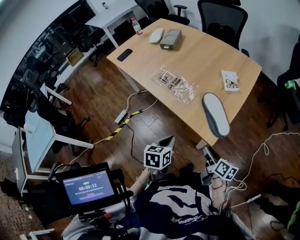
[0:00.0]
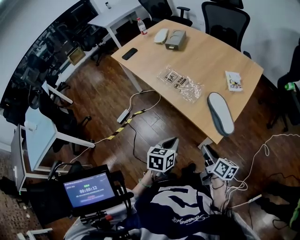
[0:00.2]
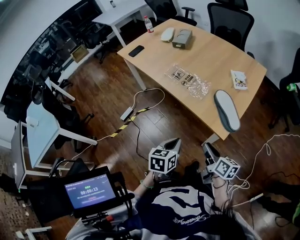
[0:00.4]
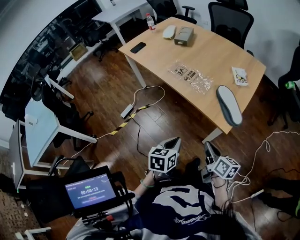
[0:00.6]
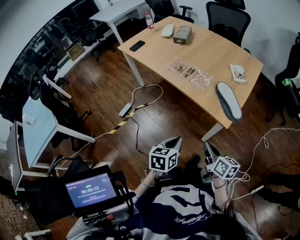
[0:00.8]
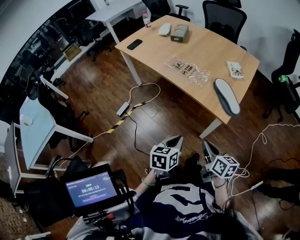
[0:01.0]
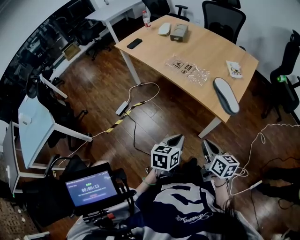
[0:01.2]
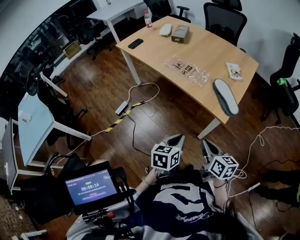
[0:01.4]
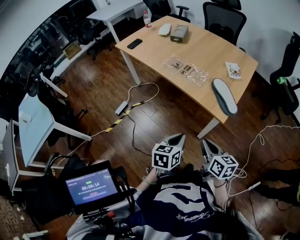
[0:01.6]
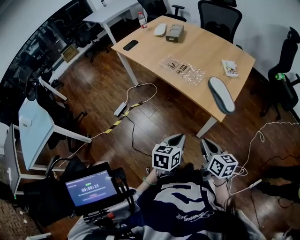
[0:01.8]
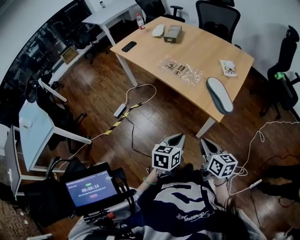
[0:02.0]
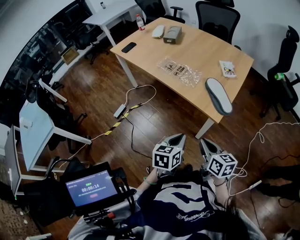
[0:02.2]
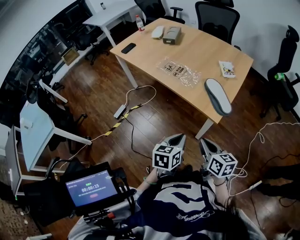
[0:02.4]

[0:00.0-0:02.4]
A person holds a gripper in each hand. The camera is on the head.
0:00.0 to 0:01.2: The left gripper heads backward and to the left, covering about 15 cm; the right gripper goes roughly 20 cm to the left, backward and upward, rotates some 20 degrees, and closes up.
0:01.2 to 0:02.4: The left gripper moves to the right, roughly 5 cm. The right gripper shifts by approximately 5 cm.

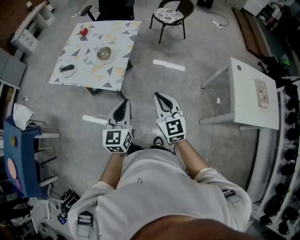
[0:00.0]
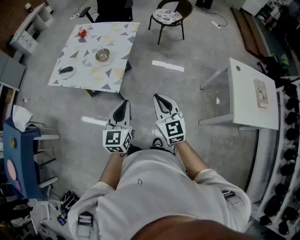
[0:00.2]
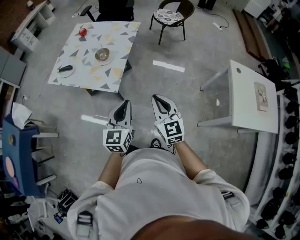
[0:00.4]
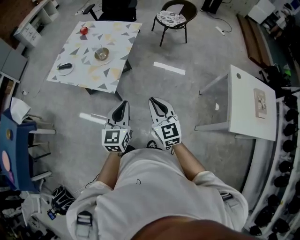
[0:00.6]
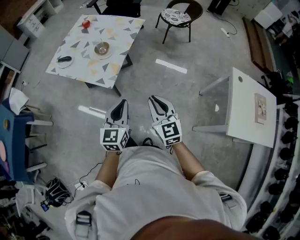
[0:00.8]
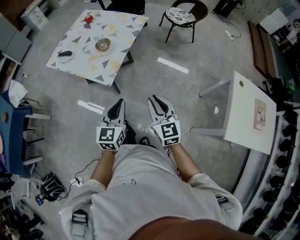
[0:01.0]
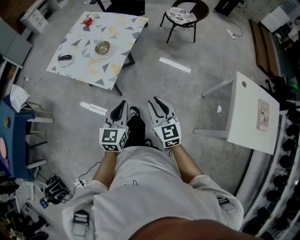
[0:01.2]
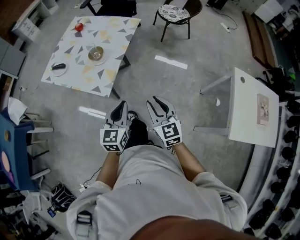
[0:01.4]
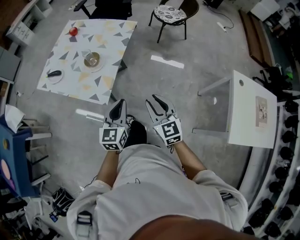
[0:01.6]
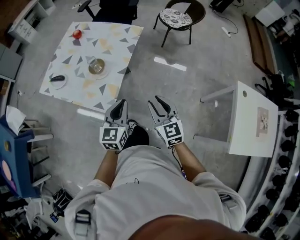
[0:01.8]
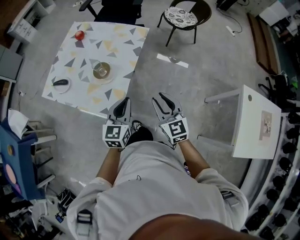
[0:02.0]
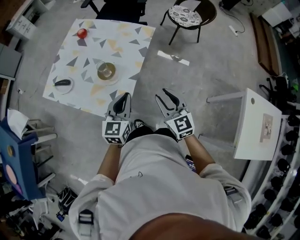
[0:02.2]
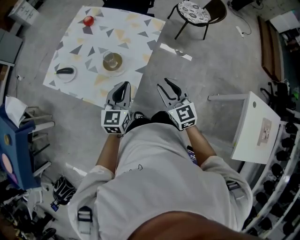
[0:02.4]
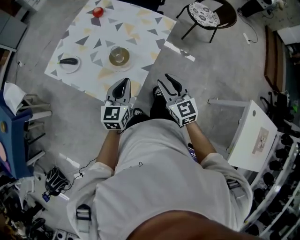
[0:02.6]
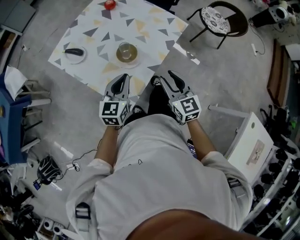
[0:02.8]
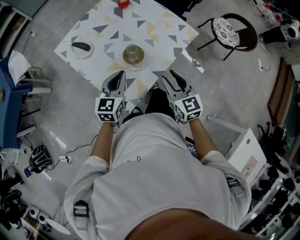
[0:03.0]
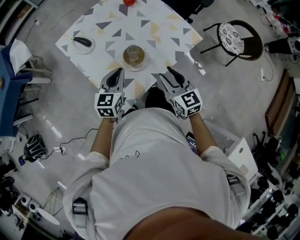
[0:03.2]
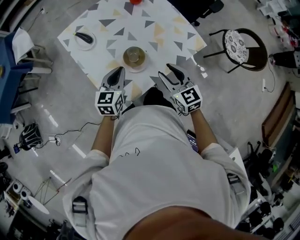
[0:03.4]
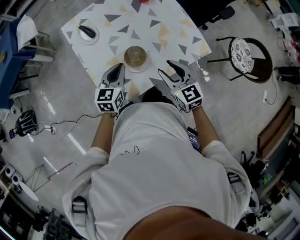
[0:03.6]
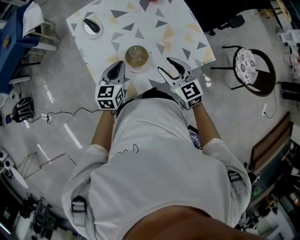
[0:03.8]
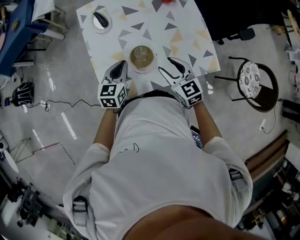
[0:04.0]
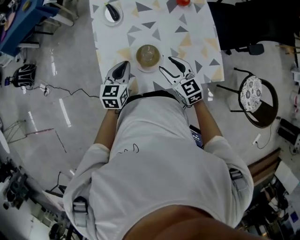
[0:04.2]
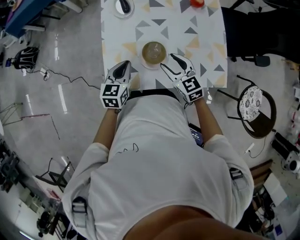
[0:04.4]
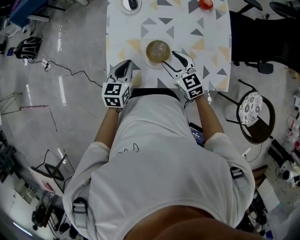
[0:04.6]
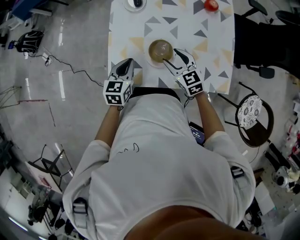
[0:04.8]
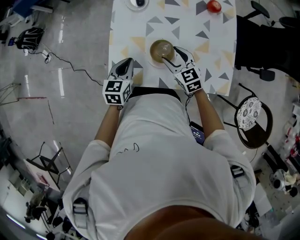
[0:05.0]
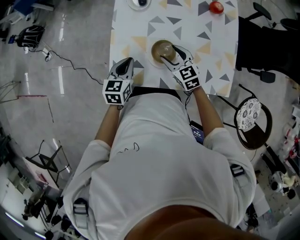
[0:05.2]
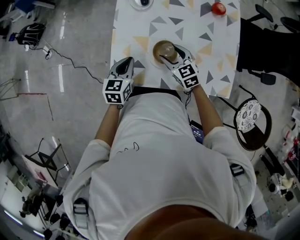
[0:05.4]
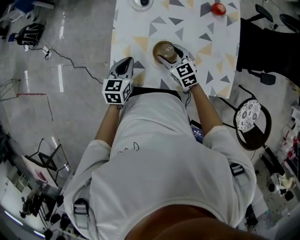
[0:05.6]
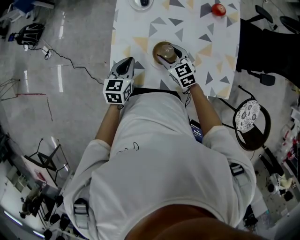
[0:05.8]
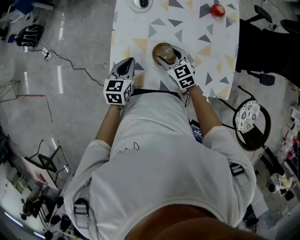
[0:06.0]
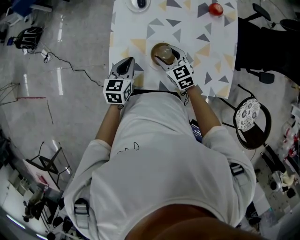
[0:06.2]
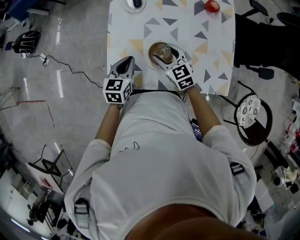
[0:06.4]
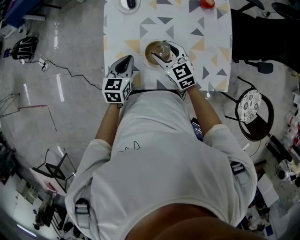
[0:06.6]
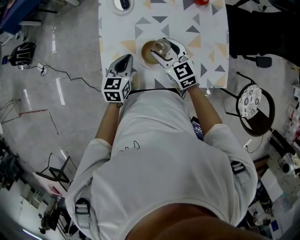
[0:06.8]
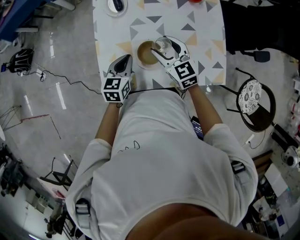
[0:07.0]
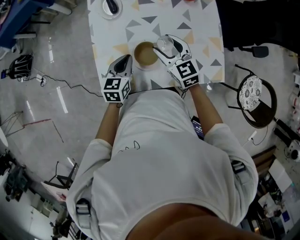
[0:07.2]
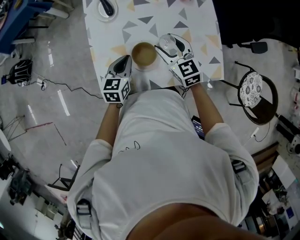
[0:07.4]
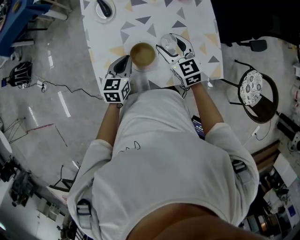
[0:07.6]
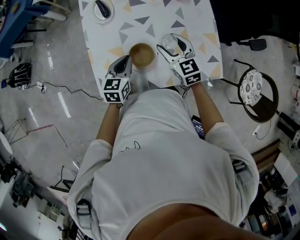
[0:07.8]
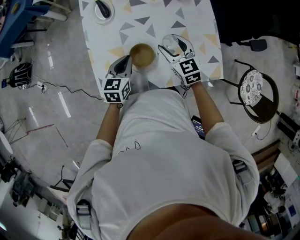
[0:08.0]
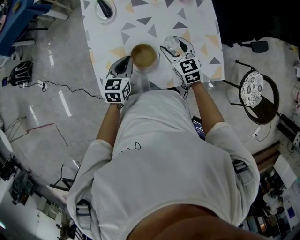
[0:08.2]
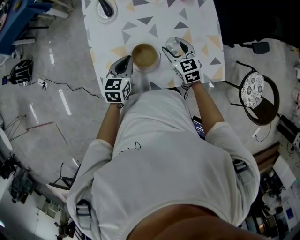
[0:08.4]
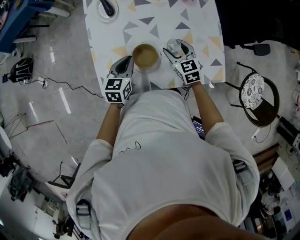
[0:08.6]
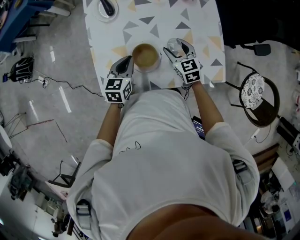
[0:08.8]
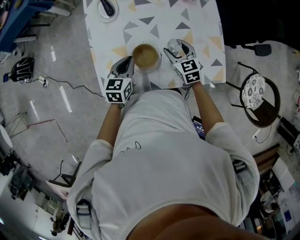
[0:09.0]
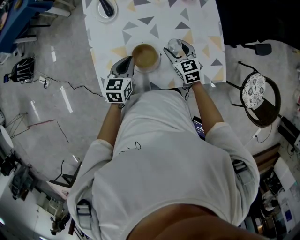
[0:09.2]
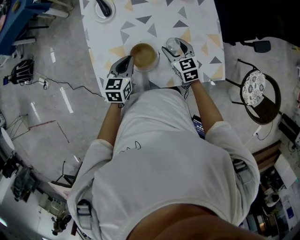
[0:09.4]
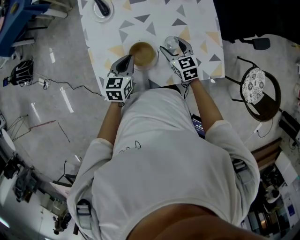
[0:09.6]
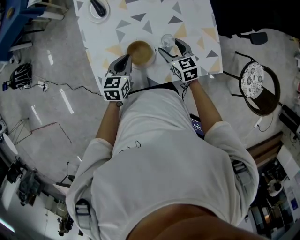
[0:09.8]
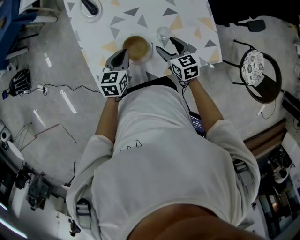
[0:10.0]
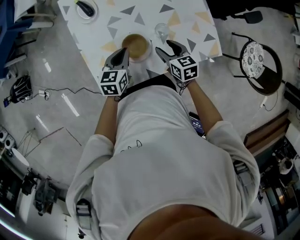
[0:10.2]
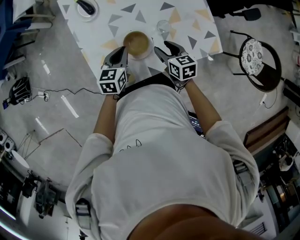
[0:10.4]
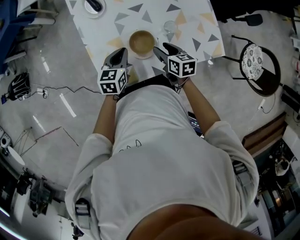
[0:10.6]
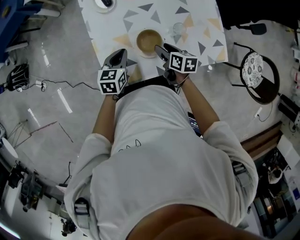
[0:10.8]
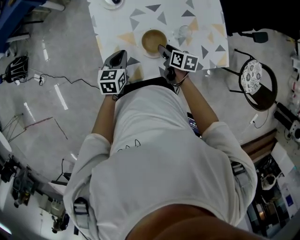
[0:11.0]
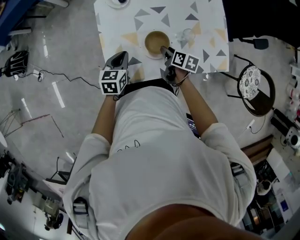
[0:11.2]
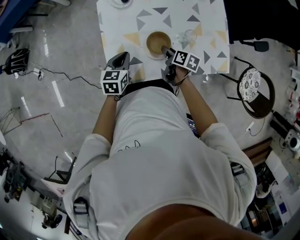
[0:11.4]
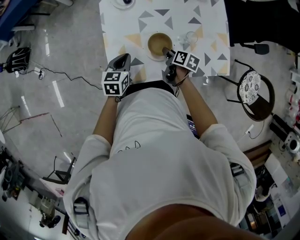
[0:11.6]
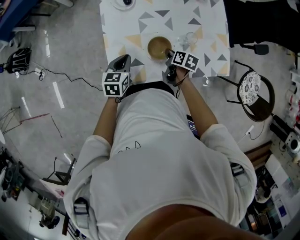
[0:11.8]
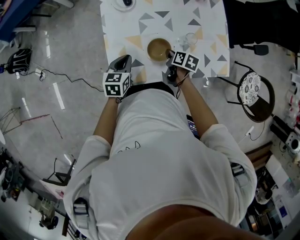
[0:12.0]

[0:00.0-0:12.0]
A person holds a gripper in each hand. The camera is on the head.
0:00.0 to 0:01.6: The two grippers go roughly 15 cm forward, downward and to the right.
0:01.6 to 0:03.0: The right gripper heads forward, covering roughly 30 cm, and changes its angle by roughly 30 degrees, while the left gripper moves forward and to the left, about 30 cm, and swivels approximately 20 degrees.
0:03.0 to 0:04.4: The right gripper ends up roughly 20 cm from where it was, and rotates approximately 50 degrees, while the left gripper shifts approximately 10 cm downward, and turns by some 50 degrees.
0:04.4 to 0:06.0: The right gripper travels downward and forward by roughly 10 cm.
0:06.0 to 0:07.6: The left gripper heads to the right, covering roughly 10 cm. Meanwhile the right gripper heads to the right and upward, covering some 15 cm.
0:07.6 to 0:09.0: The right gripper travels downward by some 10 cm.
0:09.0 to 0:10.4: The right gripper travels backward by some 10 cm, and changes its angle by about 30 degrees.
0:10.4 to 0:12.0: The left gripper is displaced to the left by approximately 10 cm. The right gripper travels downward and to the left by some 5 cm, changes its angle by approximately 30 degrees, and closes.

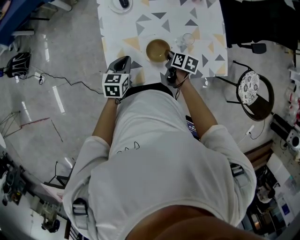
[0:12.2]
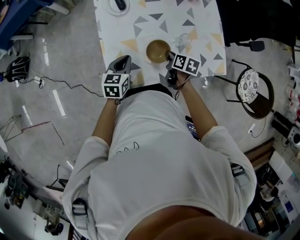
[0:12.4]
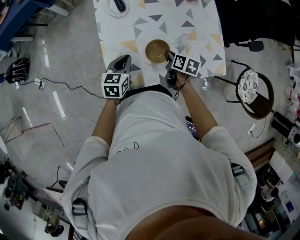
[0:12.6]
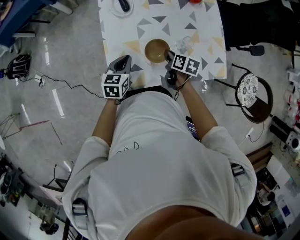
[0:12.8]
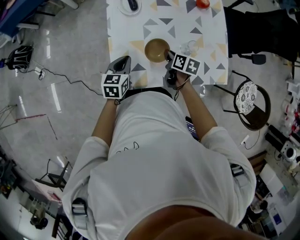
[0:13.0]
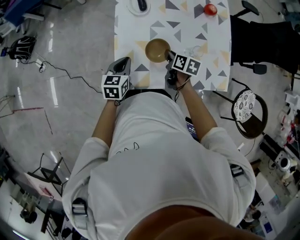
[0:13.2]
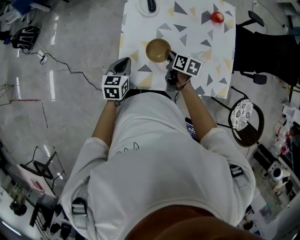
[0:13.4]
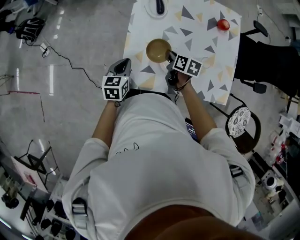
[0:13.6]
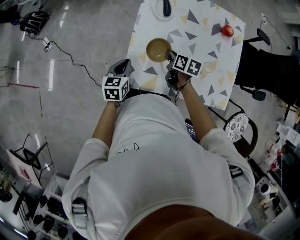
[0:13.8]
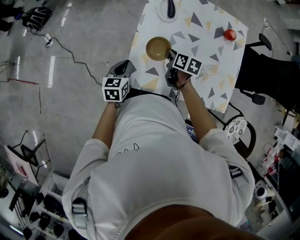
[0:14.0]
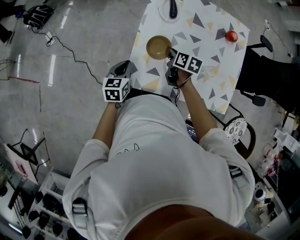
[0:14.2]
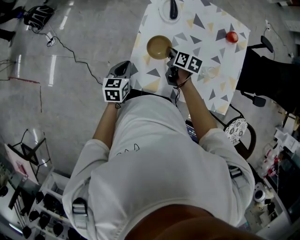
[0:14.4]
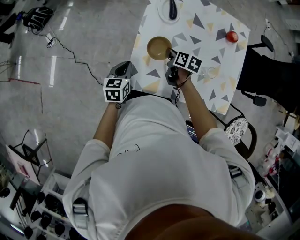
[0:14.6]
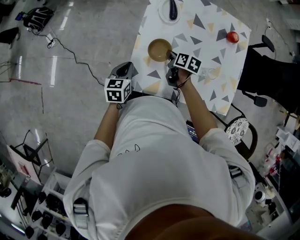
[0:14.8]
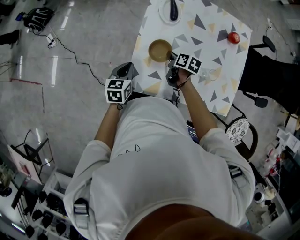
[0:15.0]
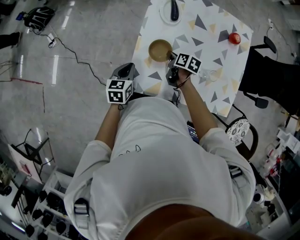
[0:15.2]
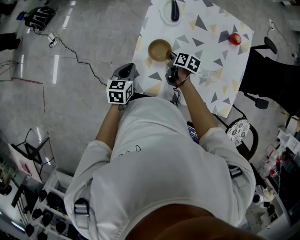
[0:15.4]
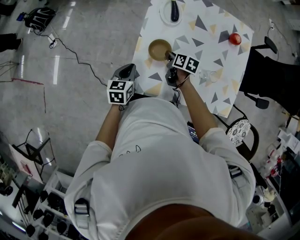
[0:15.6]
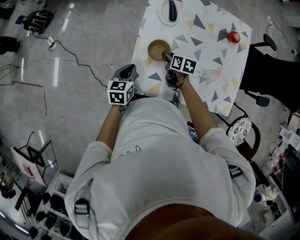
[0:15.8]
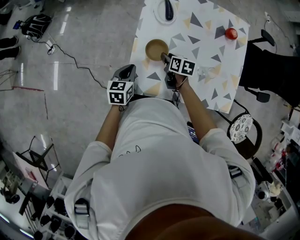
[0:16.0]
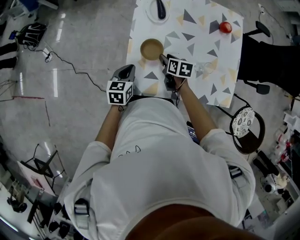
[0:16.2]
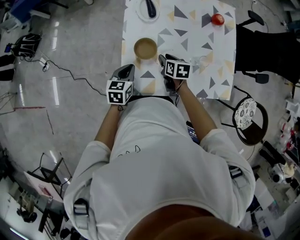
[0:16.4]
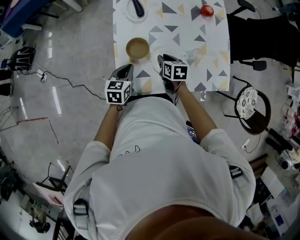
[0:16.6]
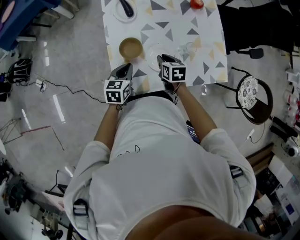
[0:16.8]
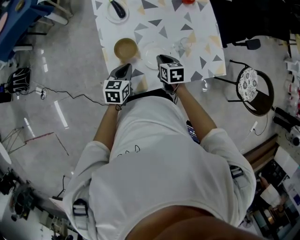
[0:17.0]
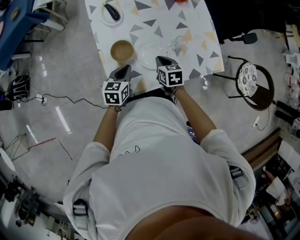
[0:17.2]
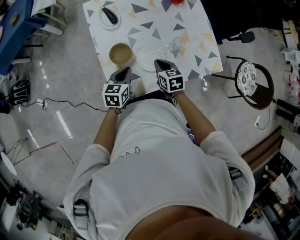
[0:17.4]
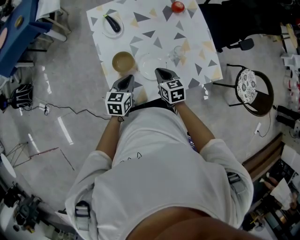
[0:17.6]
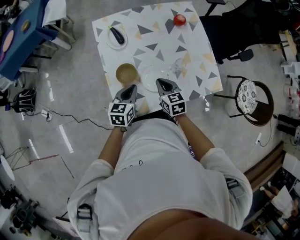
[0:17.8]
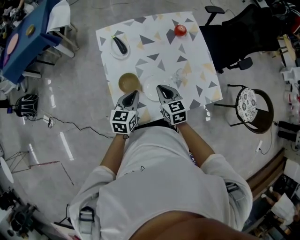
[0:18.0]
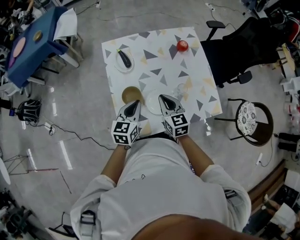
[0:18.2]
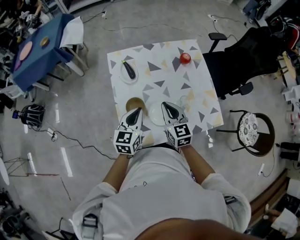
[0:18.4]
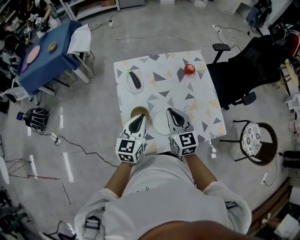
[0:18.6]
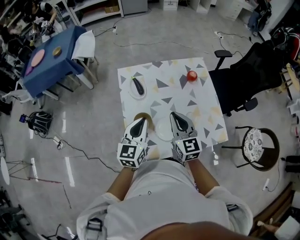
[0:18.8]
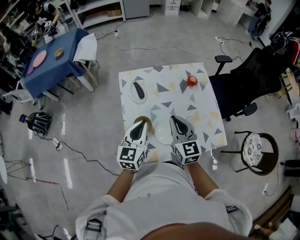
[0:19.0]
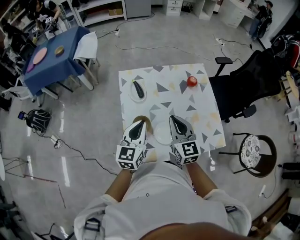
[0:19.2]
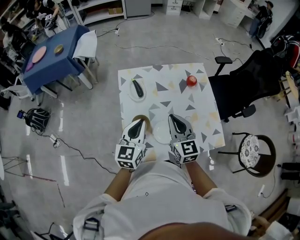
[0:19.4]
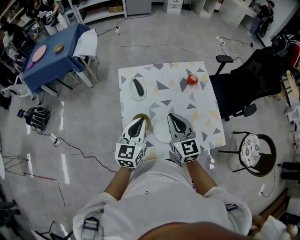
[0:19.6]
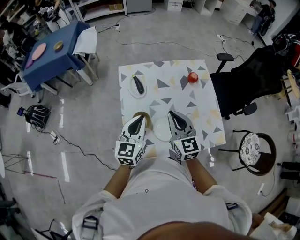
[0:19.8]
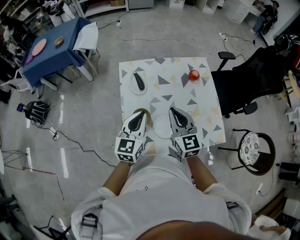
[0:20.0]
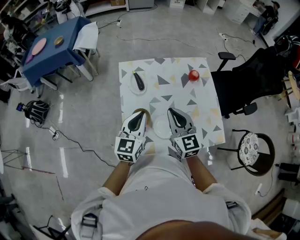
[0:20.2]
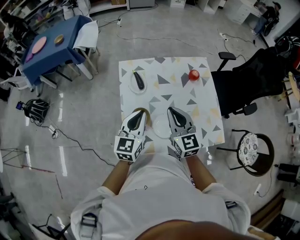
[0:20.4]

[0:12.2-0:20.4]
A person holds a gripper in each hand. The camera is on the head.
0:12.2 to 0:13.8: The right gripper shifts some 15 cm to the left, forward and upward, and rotates some 20 degrees, while the left gripper moves to the left, roughly 10 cm, and rotates roughly 20 degrees.
0:13.8 to 0:15.4: The right gripper travels downward by some 5 cm.
0:15.4 to 0:17.2: The right gripper shifts by approximately 15 cm, changes its angle by roughly 30 degrees, and opens, then closes again. Meanwhile the left gripper moves about 15 cm, and rotates approximately 30 degrees.
0:17.2 to 0:18.8: The two grippers go some 20 cm upward. The left gripper rotates about 30 degrees. Meanwhile the right gripper tips its fingers upward by some 40 degrees.
0:18.8 to 0:20.4: There are only small adjustments of the grippers.

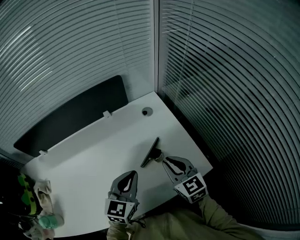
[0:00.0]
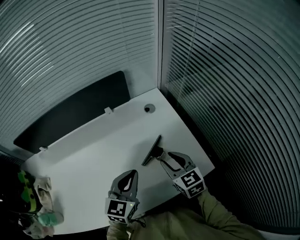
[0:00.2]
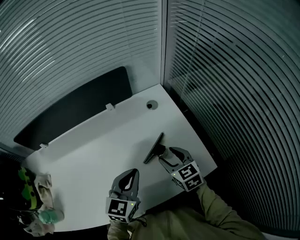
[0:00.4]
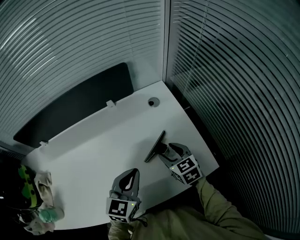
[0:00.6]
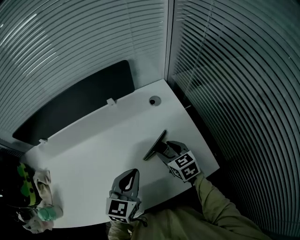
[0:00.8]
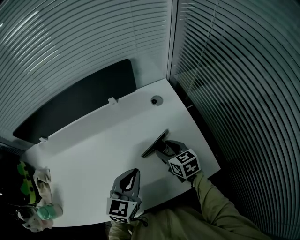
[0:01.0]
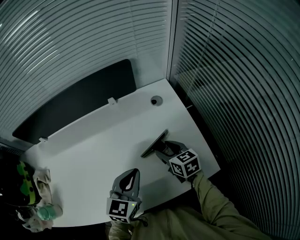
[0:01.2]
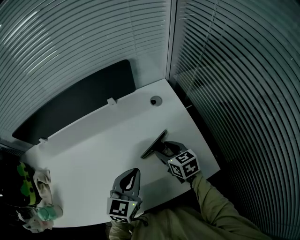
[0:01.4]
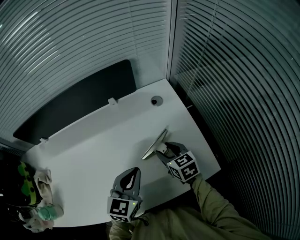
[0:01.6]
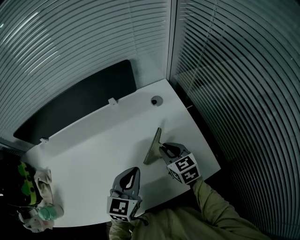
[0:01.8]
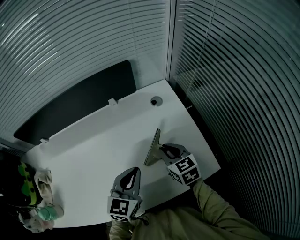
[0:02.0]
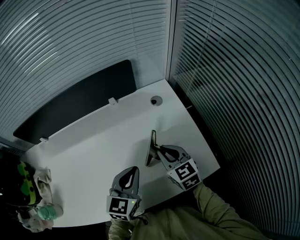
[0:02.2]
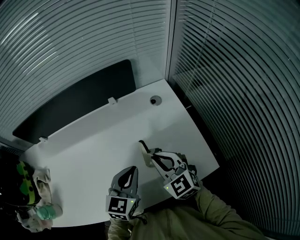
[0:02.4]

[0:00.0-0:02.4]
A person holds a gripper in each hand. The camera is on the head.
0:00.0 to 0:01.2: The right gripper shifts some 15 cm downward and forward, rotates about 20 degrees, and opens.
0:01.2 to 0:02.4: The right gripper travels upward and backward by approximately 10 cm, turns by some 40 degrees, and closes.
